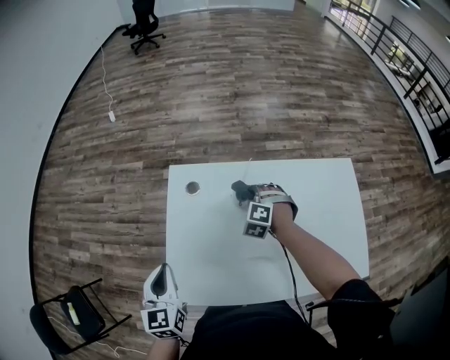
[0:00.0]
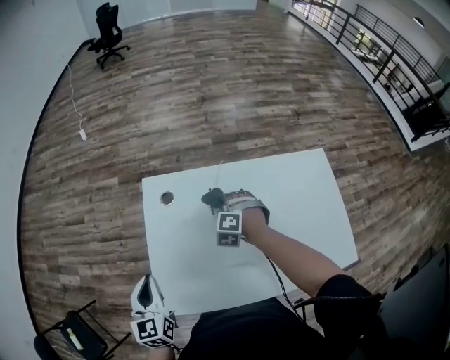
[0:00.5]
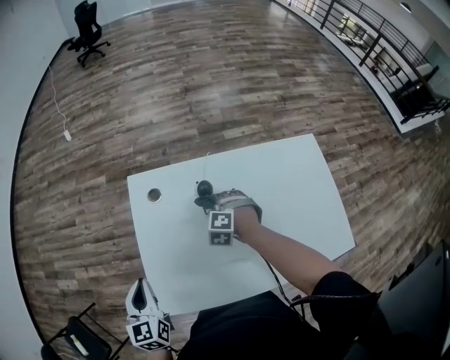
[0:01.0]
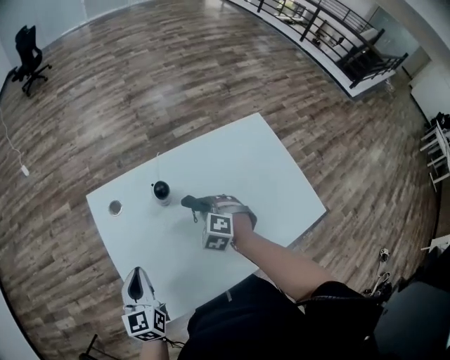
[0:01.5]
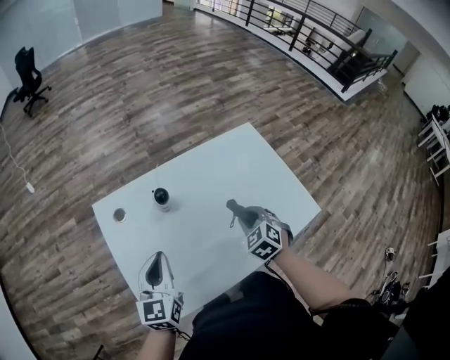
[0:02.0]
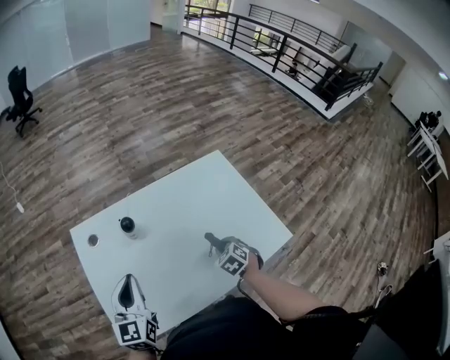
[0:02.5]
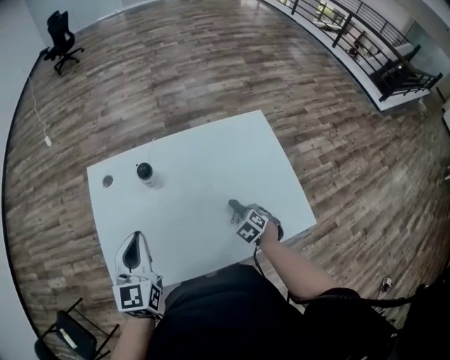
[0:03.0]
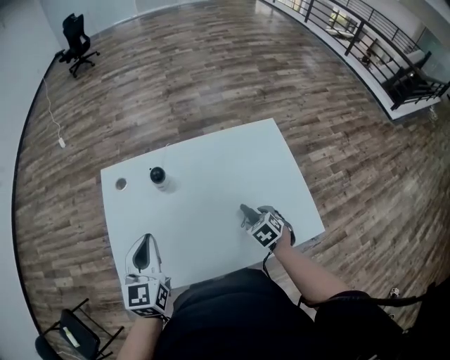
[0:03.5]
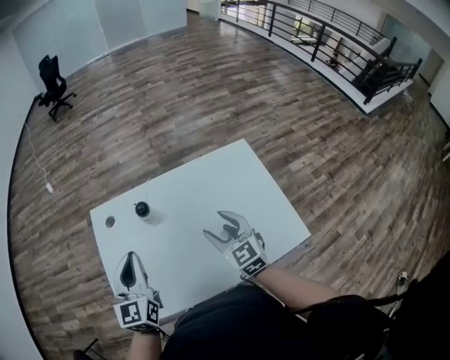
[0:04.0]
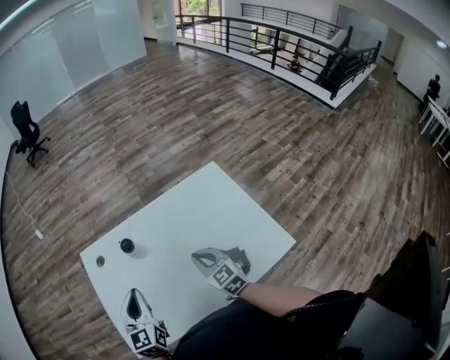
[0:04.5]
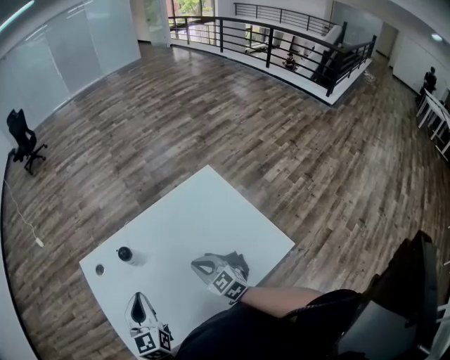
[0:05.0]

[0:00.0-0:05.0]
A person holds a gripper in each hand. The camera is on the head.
0:00.0 to 0:02.5: The right gripper shifts by roughly 30 cm, and twists some 60 degrees clockwise, seen from behind; the left gripper moves approximately 15 cm, and swivels approximately 30 degrees.
0:02.5 to 0:05.0: The right gripper swings up and down, approximately 20 cm each way, with 2 reversals, points its fingers approximately 40 degrees further upward, and opens, then closes again.

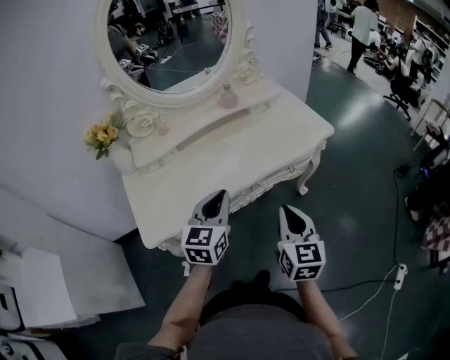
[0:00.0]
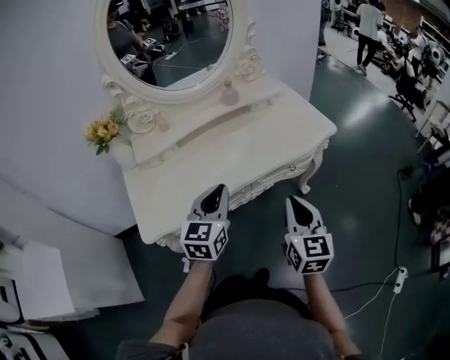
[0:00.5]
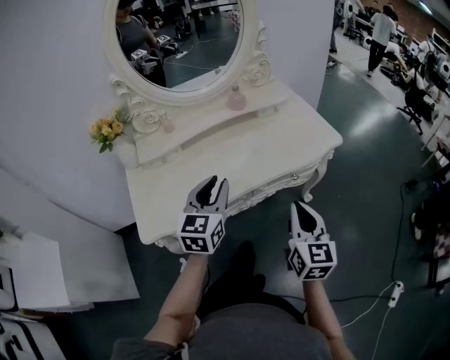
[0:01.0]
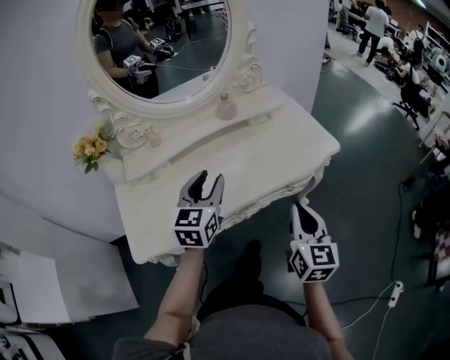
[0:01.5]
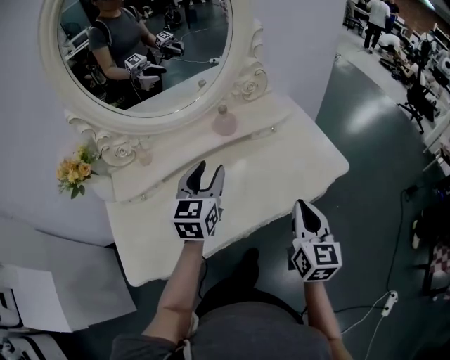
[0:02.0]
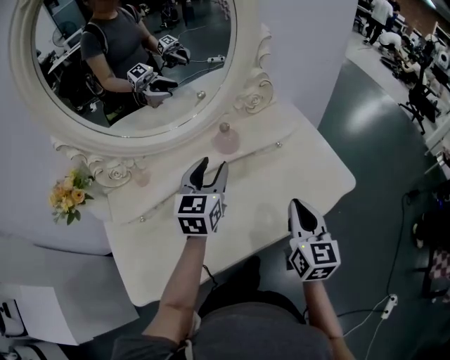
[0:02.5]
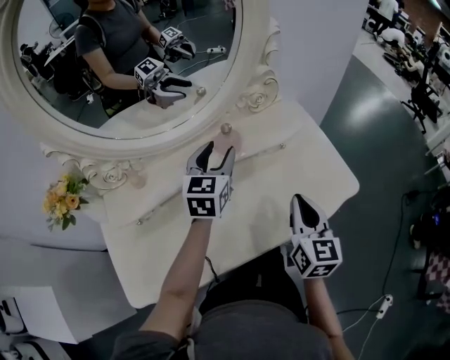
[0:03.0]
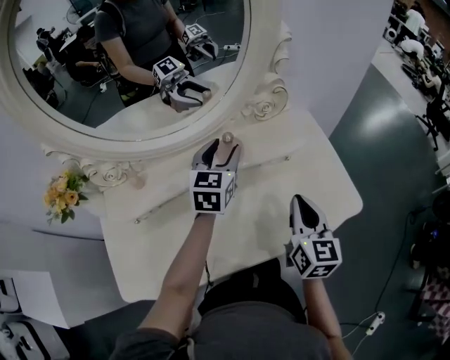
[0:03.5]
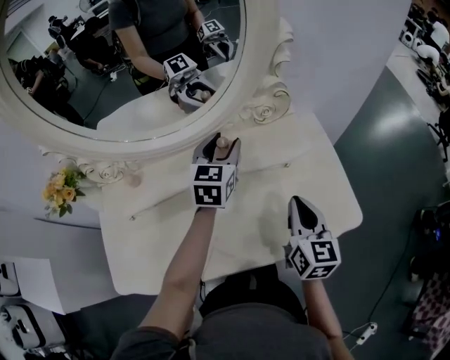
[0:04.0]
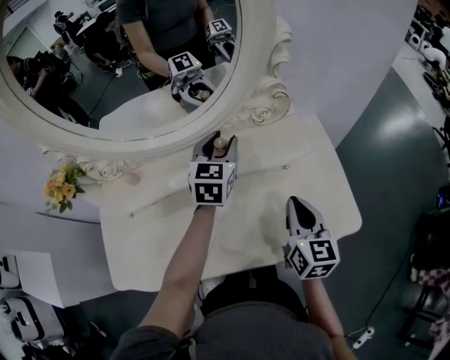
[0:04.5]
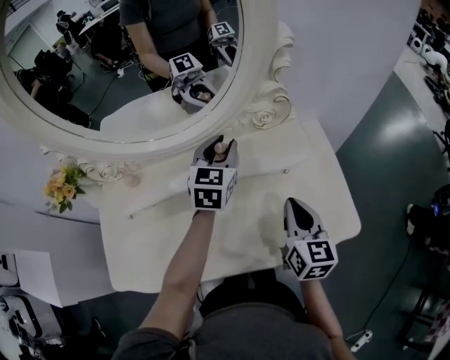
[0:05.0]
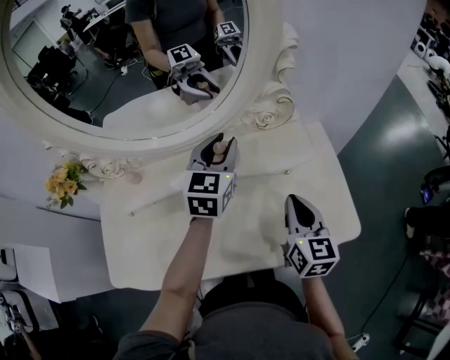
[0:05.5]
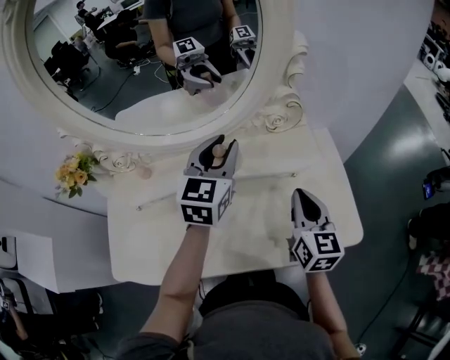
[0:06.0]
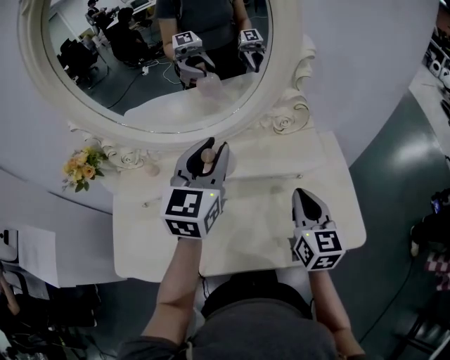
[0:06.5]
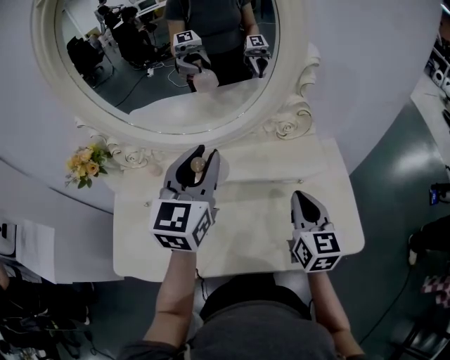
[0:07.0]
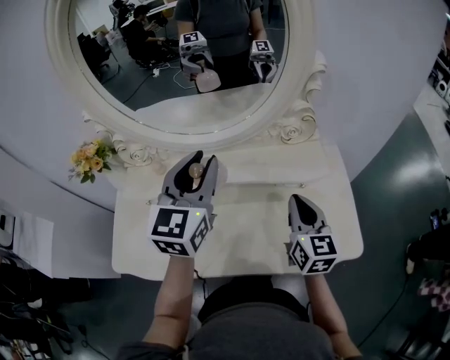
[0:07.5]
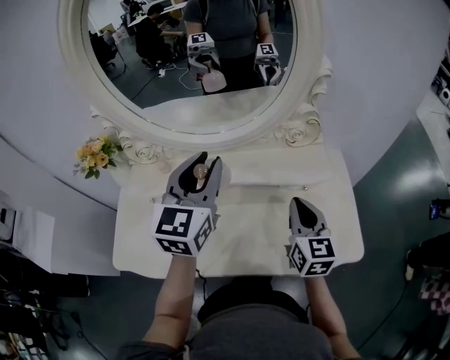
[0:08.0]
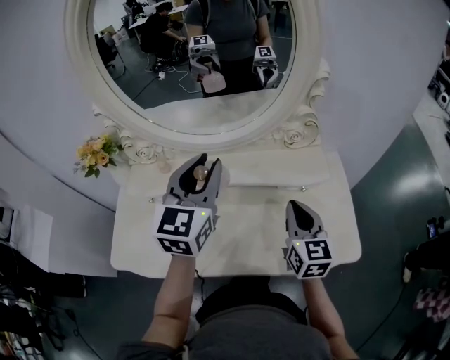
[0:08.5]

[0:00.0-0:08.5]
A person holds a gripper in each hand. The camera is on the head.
0:00.0 to 0:02.0: The two grippers go about 25 cm forward. The left gripper opens up.
0:02.0 to 0:04.0: Both grippers travel together forward, approximately 20 cm.
0:04.0 to 0:06.5: The left gripper goes approximately 15 cm upward and backward, and closes its fingers.
0:06.5 to 0:08.5: The left gripper shifts about 5 cm backward.

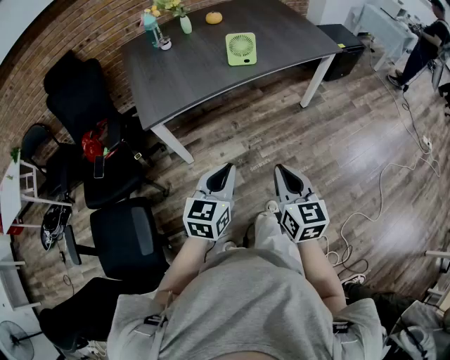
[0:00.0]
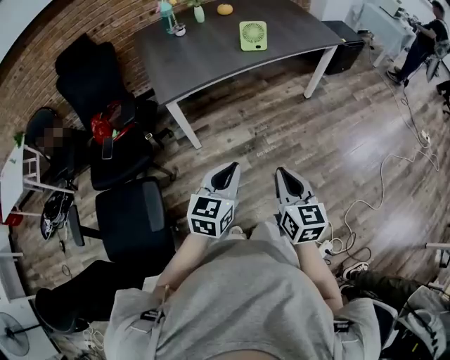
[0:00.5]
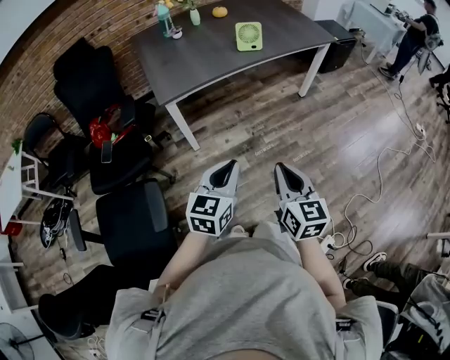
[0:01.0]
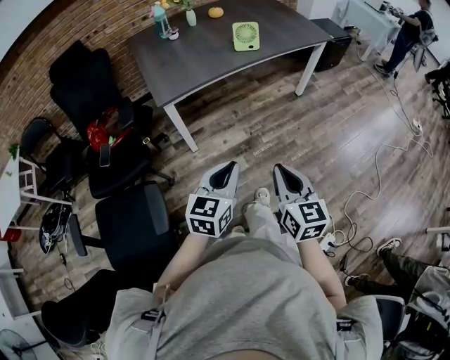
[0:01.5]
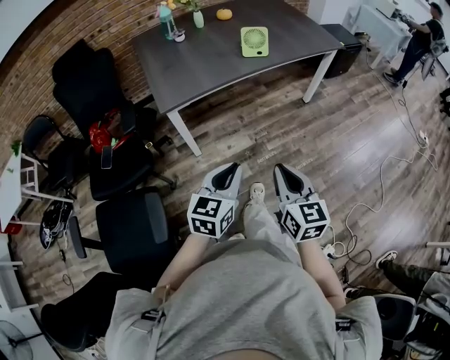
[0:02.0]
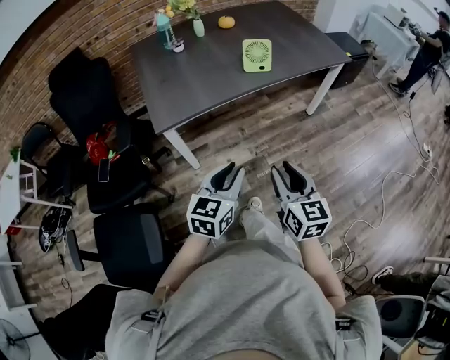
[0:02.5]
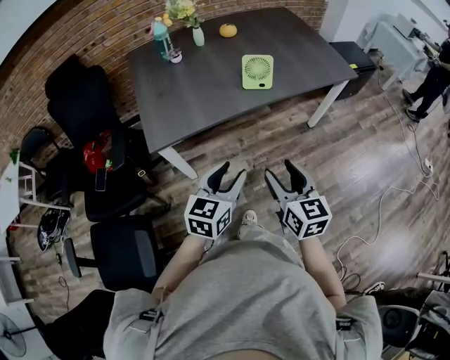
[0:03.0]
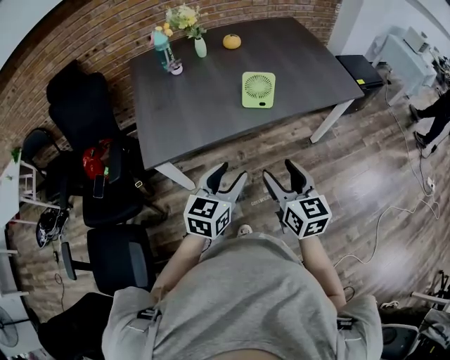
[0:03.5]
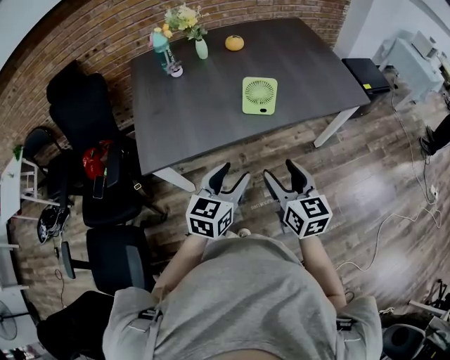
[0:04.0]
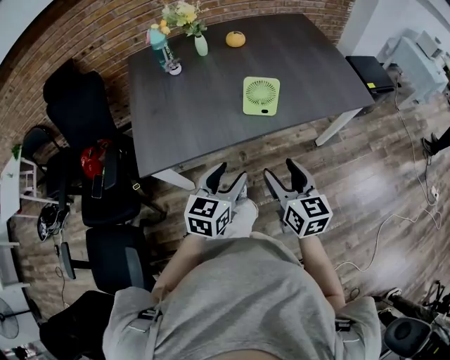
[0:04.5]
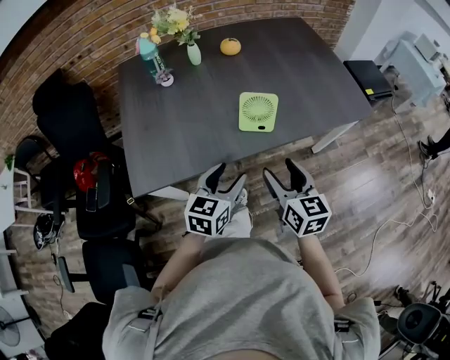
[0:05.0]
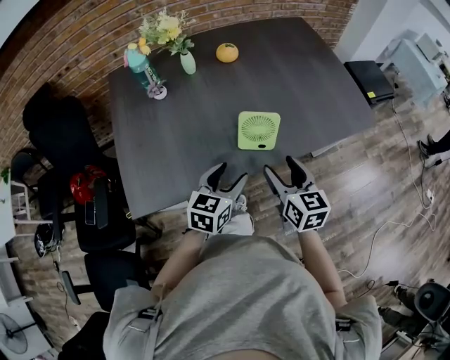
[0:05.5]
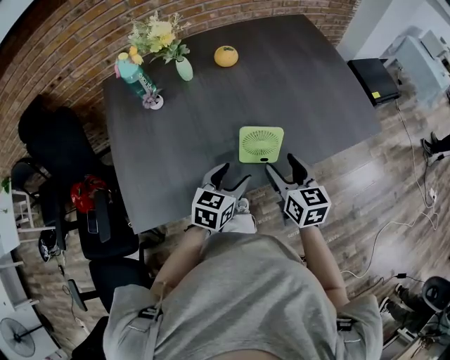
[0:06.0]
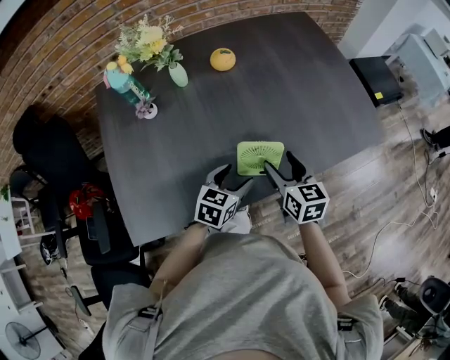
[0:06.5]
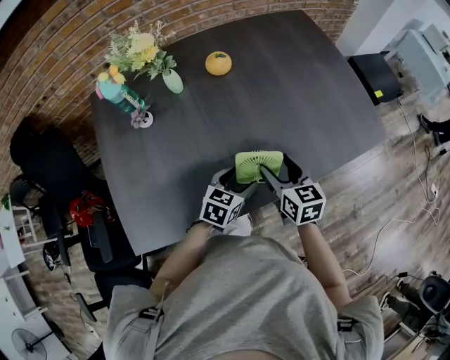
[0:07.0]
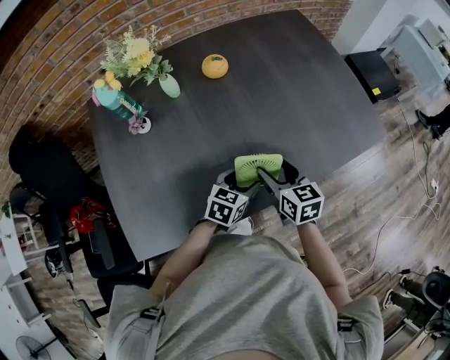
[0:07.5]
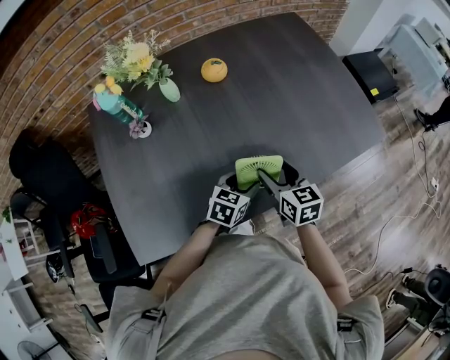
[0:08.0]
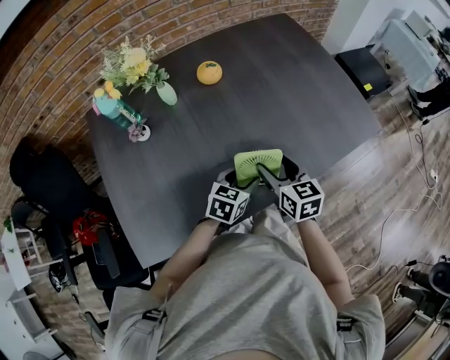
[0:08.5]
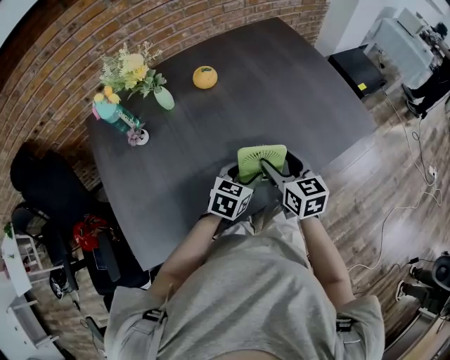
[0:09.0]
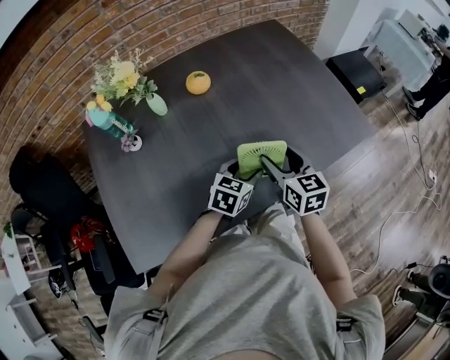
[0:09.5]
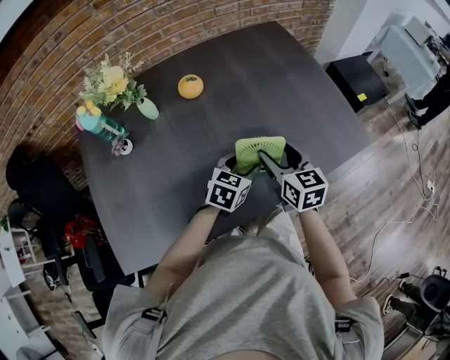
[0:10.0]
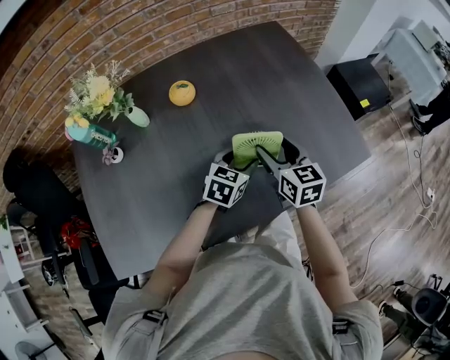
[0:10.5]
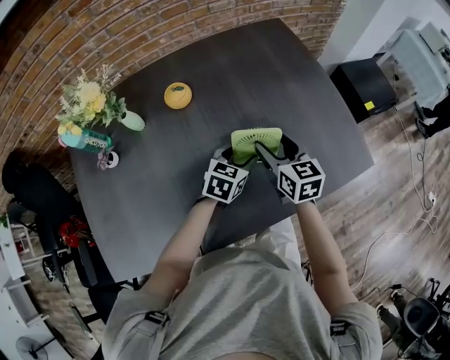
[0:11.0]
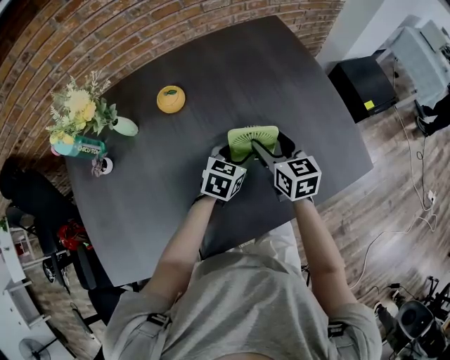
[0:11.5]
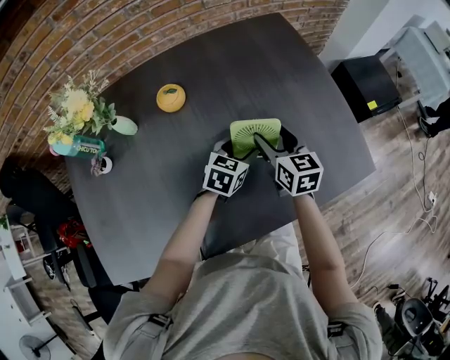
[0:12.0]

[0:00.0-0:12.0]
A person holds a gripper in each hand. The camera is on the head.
0:00.0 to 0:02.0: The right gripper heads to the left and backward, covering approximately 10 cm, while the left gripper moves backward and to the left, approximately 10 cm.
0:02.0 to 0:04.0: The two grippers go roughly 35 cm forward. The left gripper opens up; the right gripper opens up.
0:04.0 to 0:06.0: Both grippers travel together forward, approximately 25 cm.
0:06.0 to 0:08.0: The left gripper shifts some 10 cm forward and downward, while the right gripper goes about 10 cm forward.
0:08.0 to 0:10.0: Both grippers move forward, to the right and upward, roughly 15 cm.
0:10.0 to 0:12.0: The two grippers go some 15 cm forward.

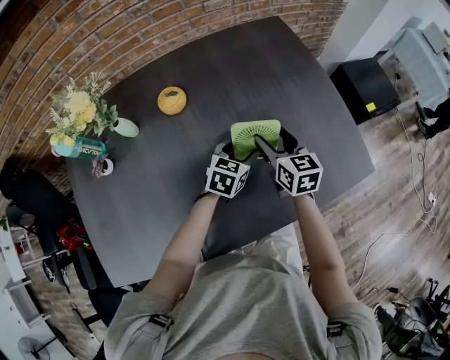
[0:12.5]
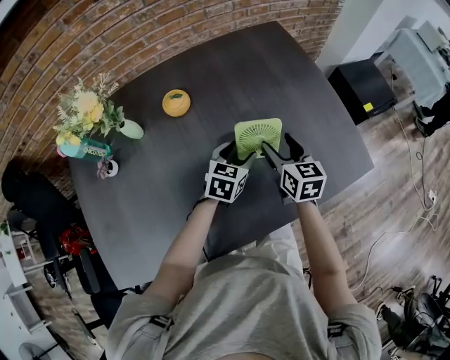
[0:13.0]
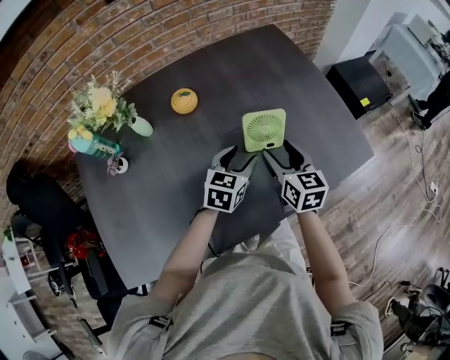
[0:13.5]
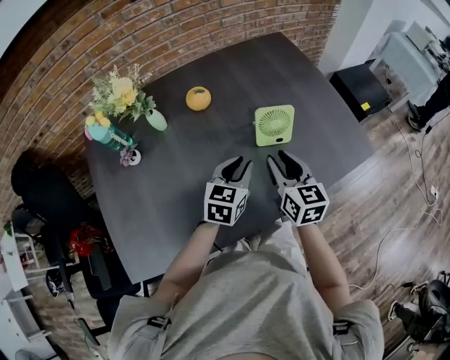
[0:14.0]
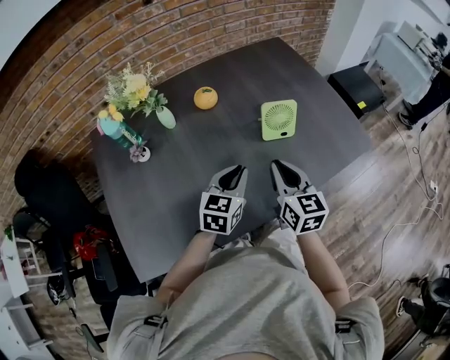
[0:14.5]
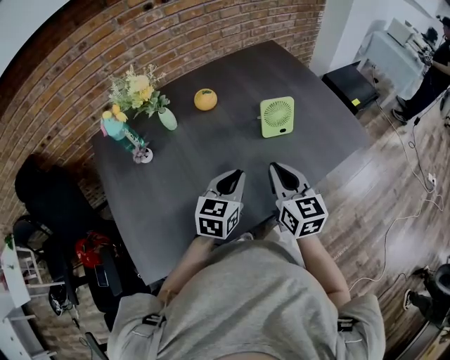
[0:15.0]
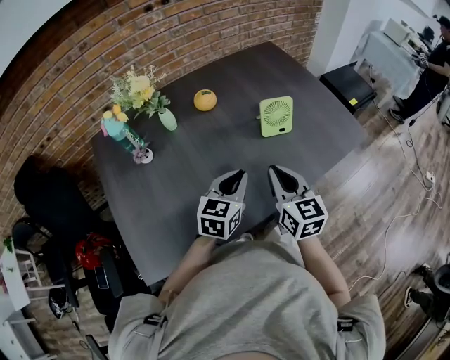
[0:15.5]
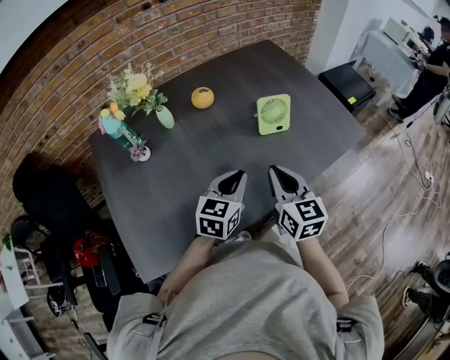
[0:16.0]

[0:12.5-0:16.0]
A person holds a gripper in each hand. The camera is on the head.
0:12.5 to 0:14.5: The right gripper travels backward and upward by approximately 25 cm, and closes up, while the left gripper shifts some 25 cm backward, upward and to the left, and closes.
0:14.5 to 0:16.0: The grippers both shift backward by roughly 5 cm.
